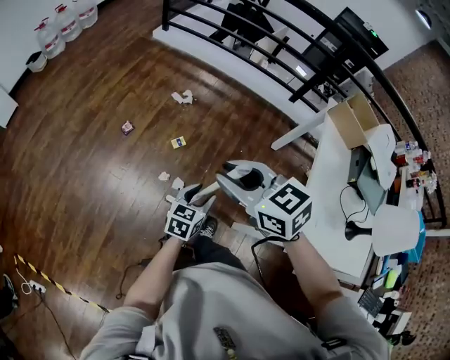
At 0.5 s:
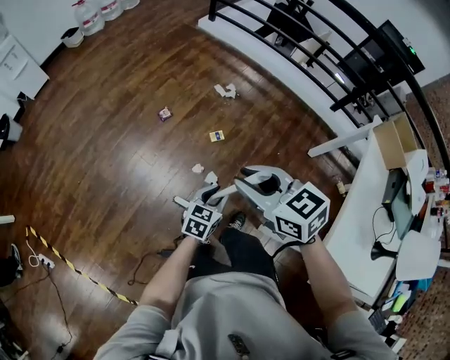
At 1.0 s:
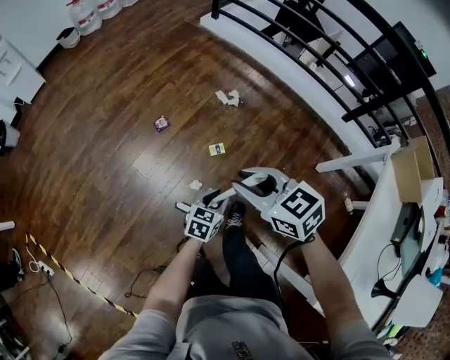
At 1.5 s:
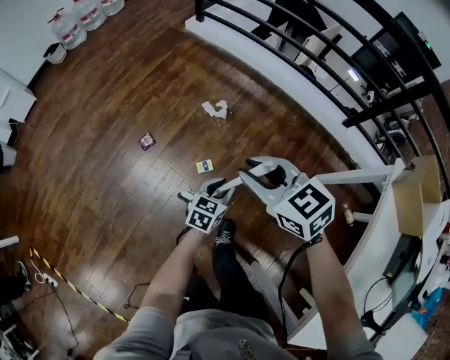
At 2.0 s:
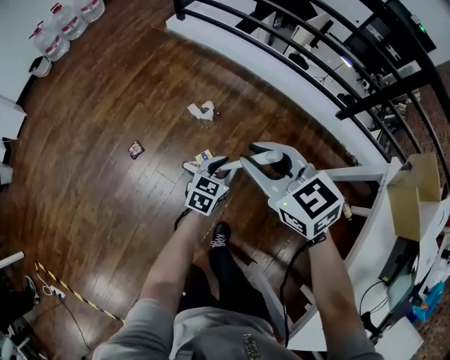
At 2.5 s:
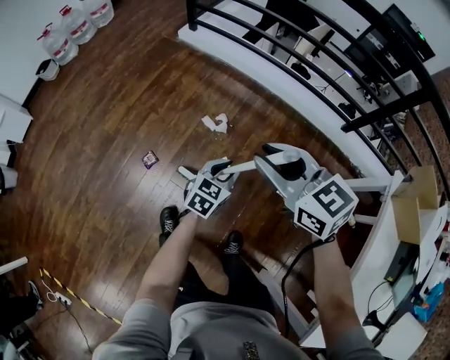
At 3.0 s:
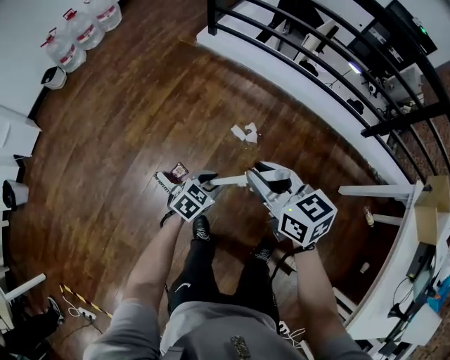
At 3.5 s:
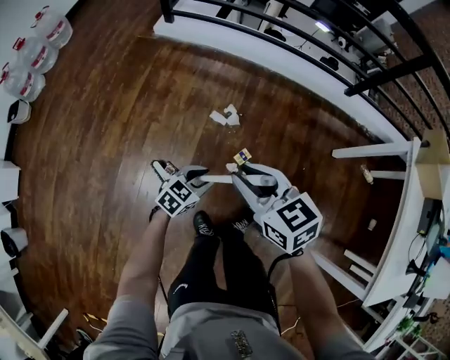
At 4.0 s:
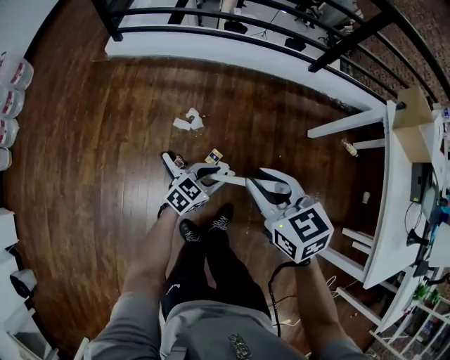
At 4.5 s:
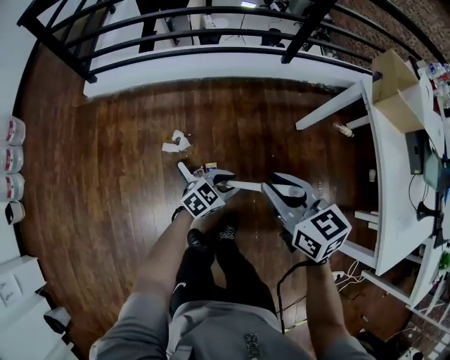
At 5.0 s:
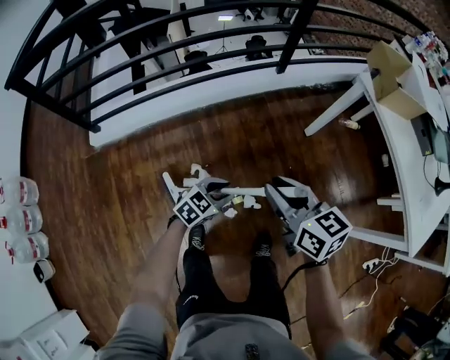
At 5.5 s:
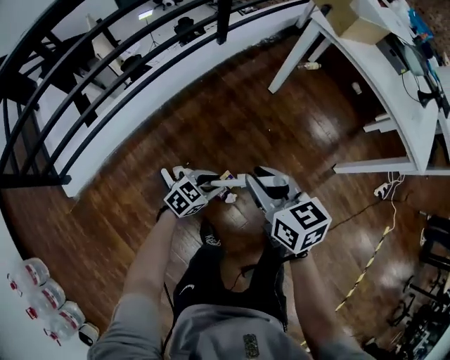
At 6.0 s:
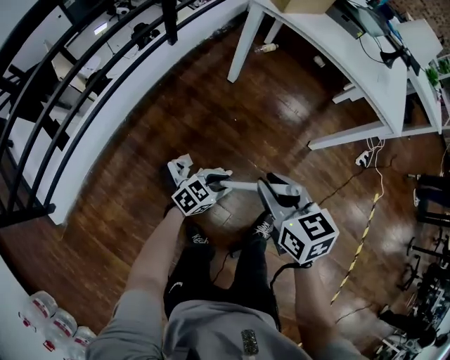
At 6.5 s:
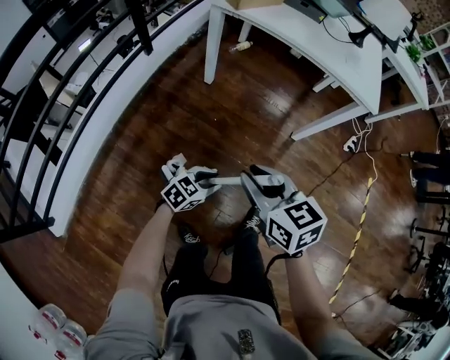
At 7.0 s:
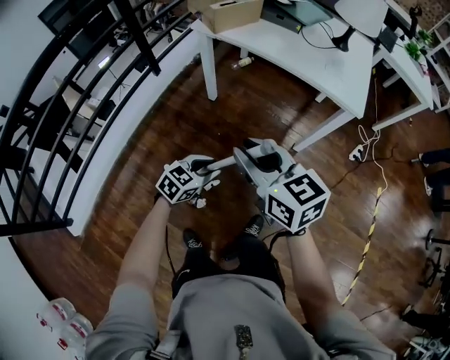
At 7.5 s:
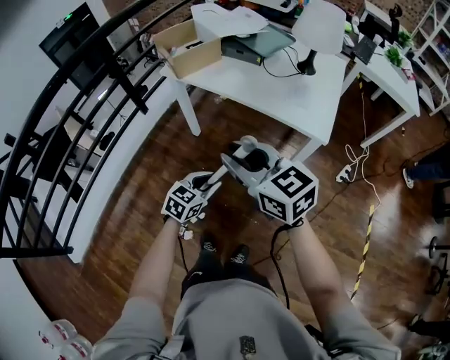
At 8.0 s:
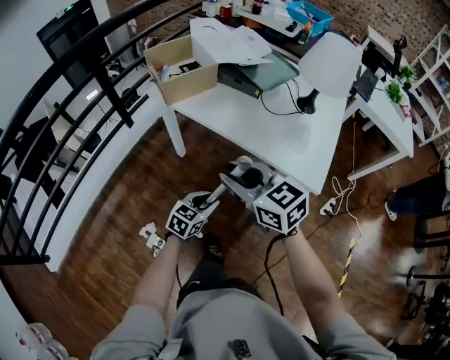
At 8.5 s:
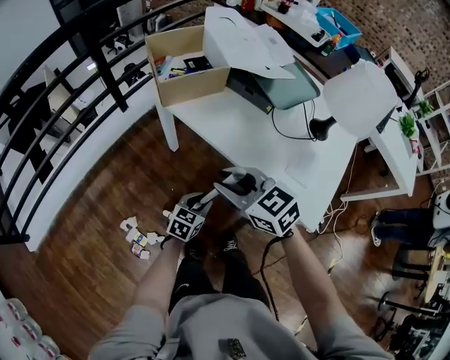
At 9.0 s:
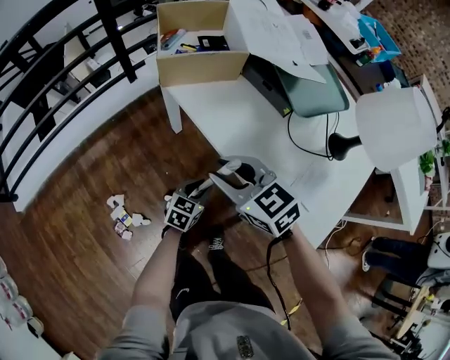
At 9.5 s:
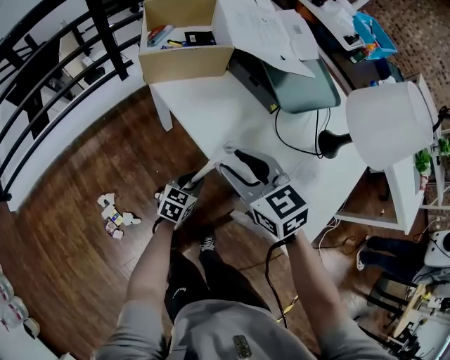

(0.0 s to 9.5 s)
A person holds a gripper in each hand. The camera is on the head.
0.0 s - 2.0 s: Both grippers are carried forward, roughly 40 cm.
2.0 s - 4.0 s: The right gripper swivels some 40 degrees. The left gripper reaches approximately 5 cm upward, then returns, and swivels some 50 degrees.
4.0 s - 5.5 s: The left gripper ends up about 15 cm from where it was, and changes its angle by about 50 degrees; the right gripper moves some 15 cm, and rotates about 50 degrees.
5.5 s - 7.5 s: The pair of grippers is taken to the right and forward, approximately 40 cm. The two grippers go roughly 25 cm upward.
7.5 s - 9.5 s: The left gripper moves approximately 35 cm, and changes its angle by some 30 degrees. Meanwhile the right gripper moves about 35 cm, and changes its angle by some 30 degrees.

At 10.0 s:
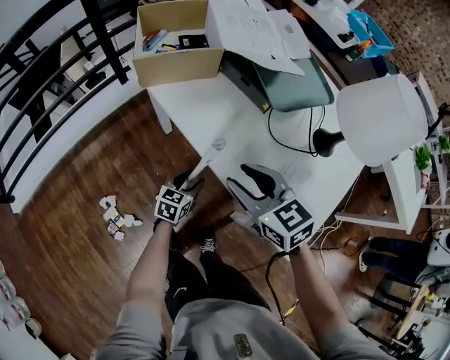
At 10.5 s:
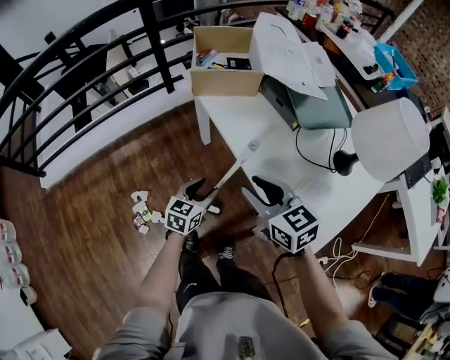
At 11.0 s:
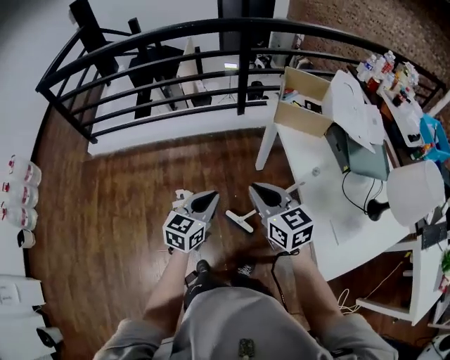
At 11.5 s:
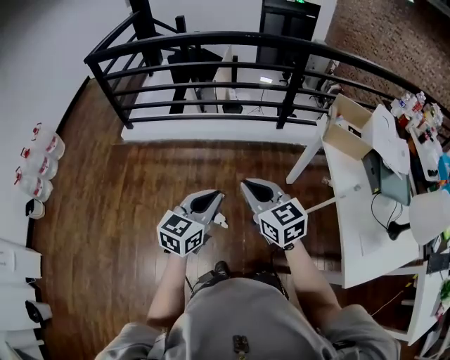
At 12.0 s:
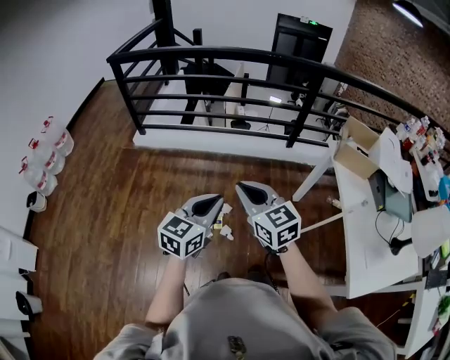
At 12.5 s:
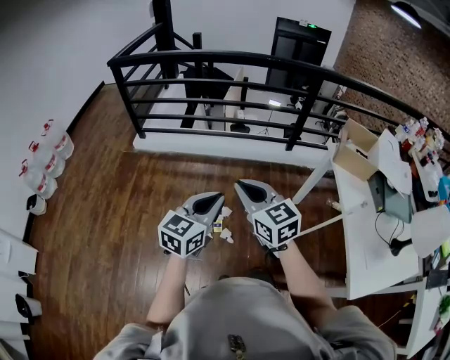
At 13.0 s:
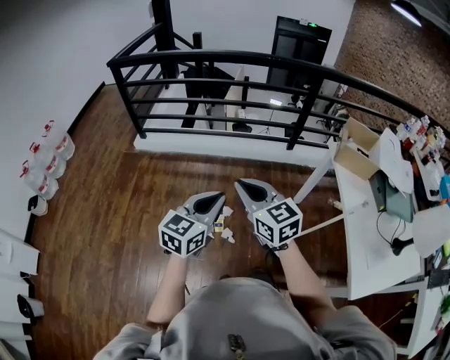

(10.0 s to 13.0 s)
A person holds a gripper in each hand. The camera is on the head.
10.0 s - 11.5 s: The pair of grippers is taken roughly 50 cm. The right gripper changes its angle by some 40 degrees, and closes up. The left gripper rotates about 50 degrees, and closes.
11.5 s - 13.0 s: Both grippers move to the left, about 5 cm.

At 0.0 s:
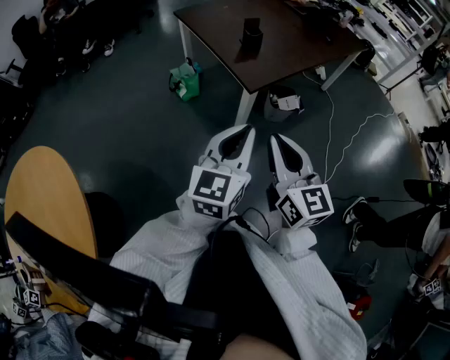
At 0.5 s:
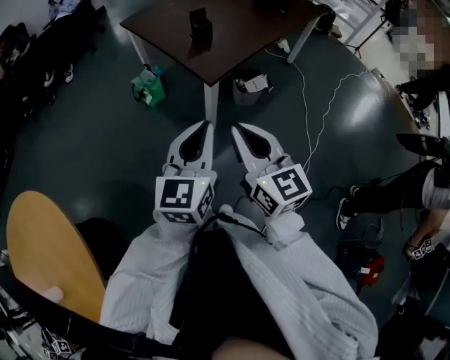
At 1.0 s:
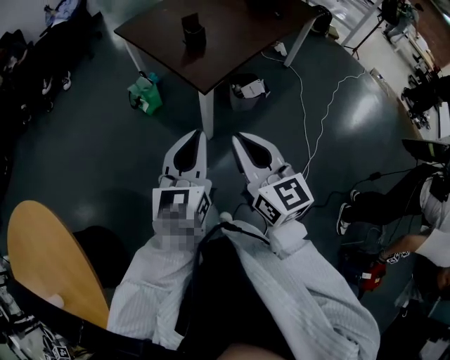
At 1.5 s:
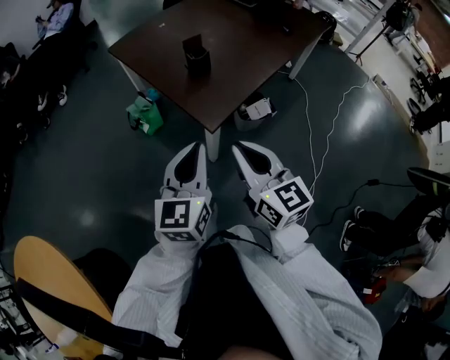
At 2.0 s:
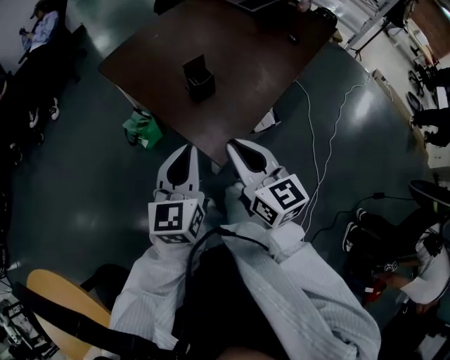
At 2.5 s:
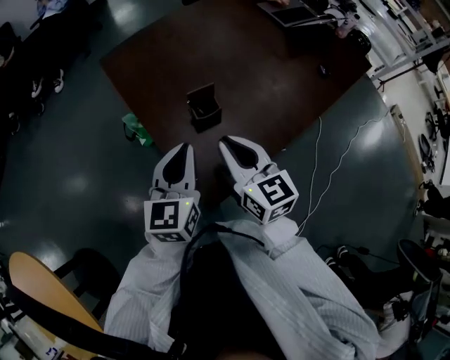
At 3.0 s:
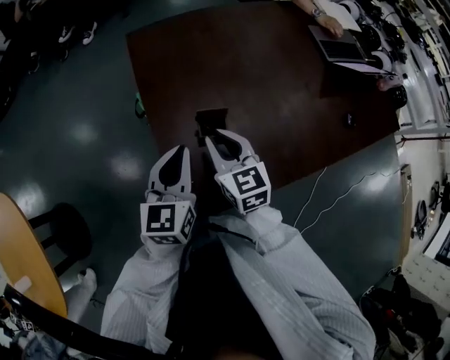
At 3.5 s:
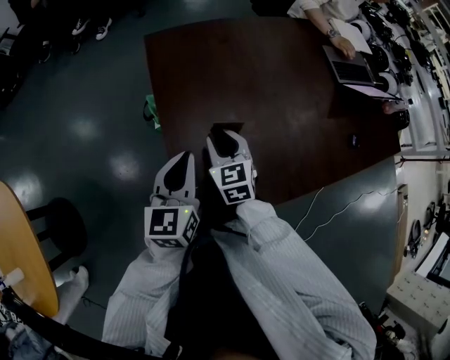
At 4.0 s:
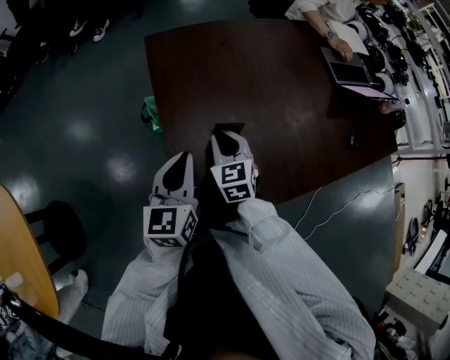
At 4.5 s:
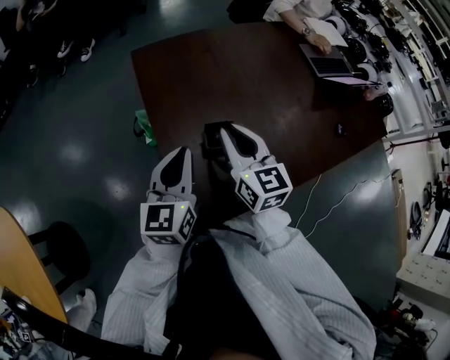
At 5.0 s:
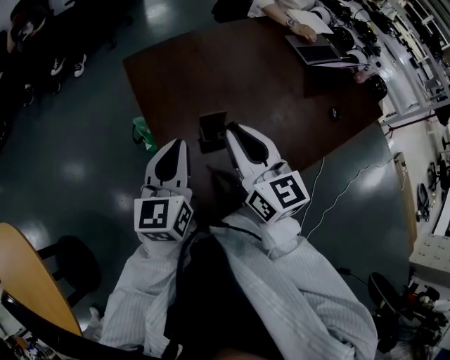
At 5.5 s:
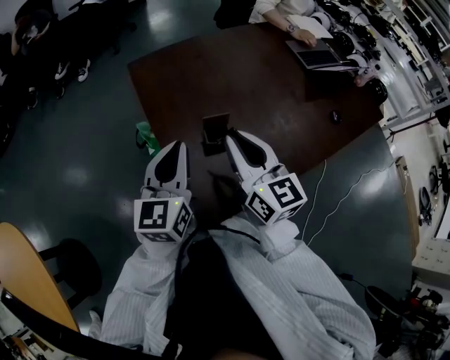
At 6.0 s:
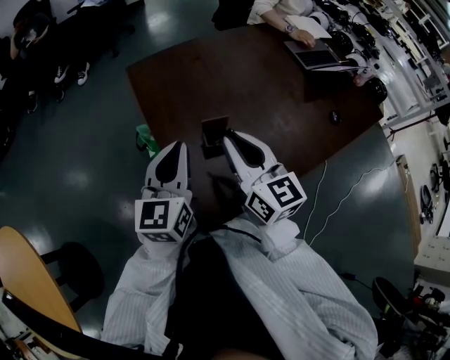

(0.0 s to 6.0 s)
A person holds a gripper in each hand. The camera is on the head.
0.0 s - 2.0 s: The two grippers go about 35 cm forward.
2.0 s - 4.0 s: The left gripper shifts by some 25 cm, and changes its angle by about 30 degrees; the right gripper moves about 35 cm, and rotates about 40 degrees.
4.0 s - 6.0 s: The right gripper goes roughly 20 cm upward and backward, and turns by roughly 30 degrees. The left gripper shifts approximately 10 cm upward.

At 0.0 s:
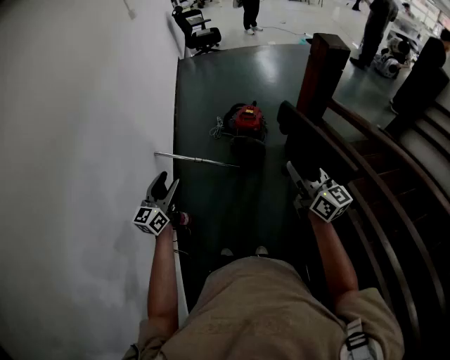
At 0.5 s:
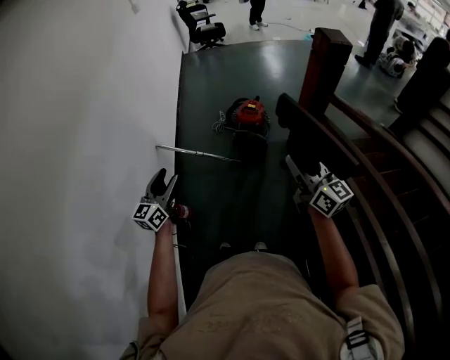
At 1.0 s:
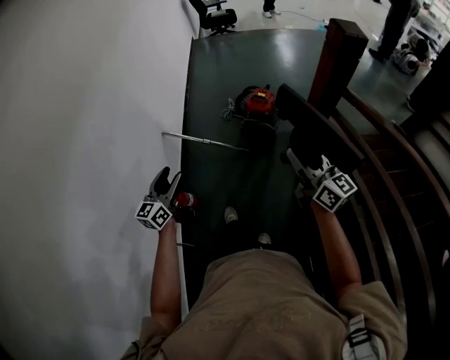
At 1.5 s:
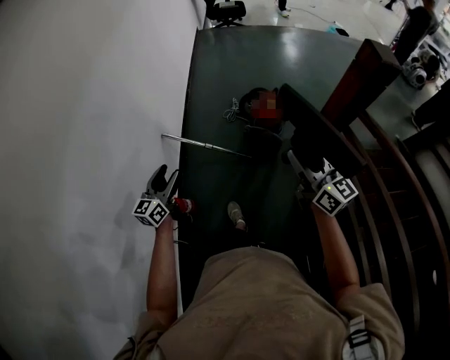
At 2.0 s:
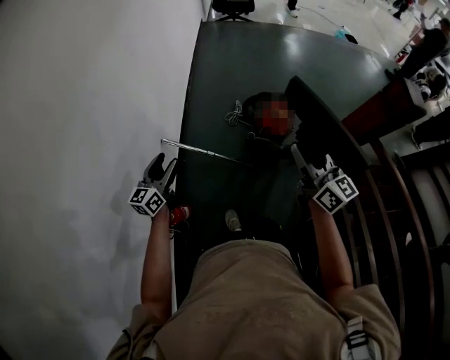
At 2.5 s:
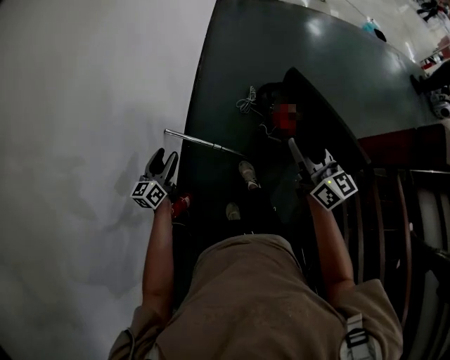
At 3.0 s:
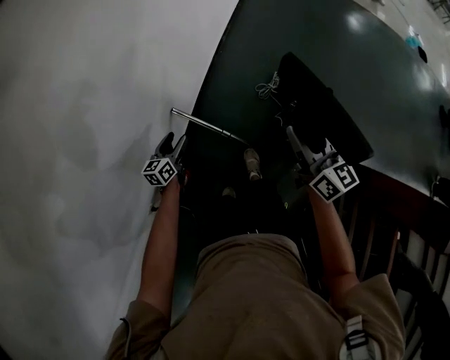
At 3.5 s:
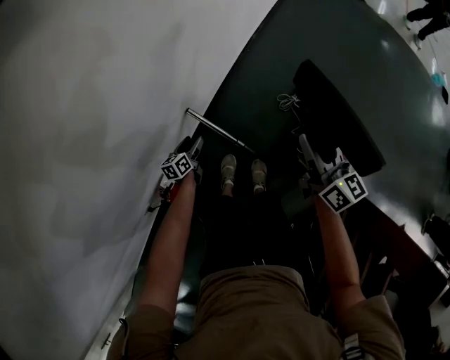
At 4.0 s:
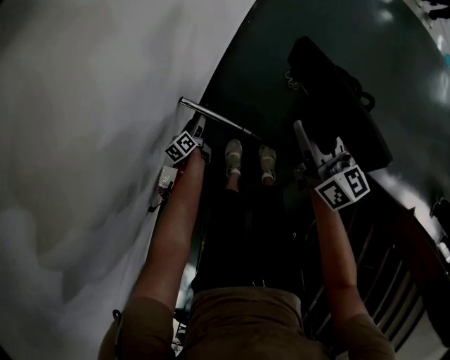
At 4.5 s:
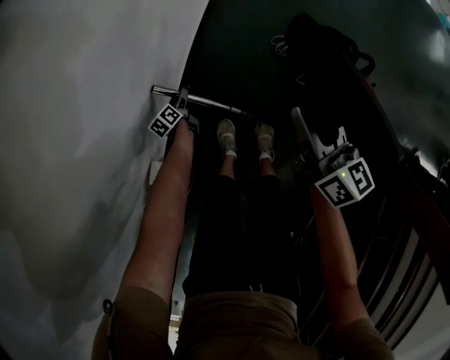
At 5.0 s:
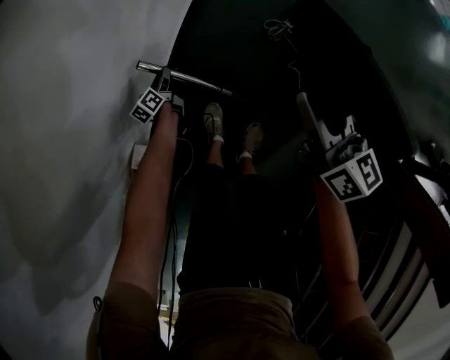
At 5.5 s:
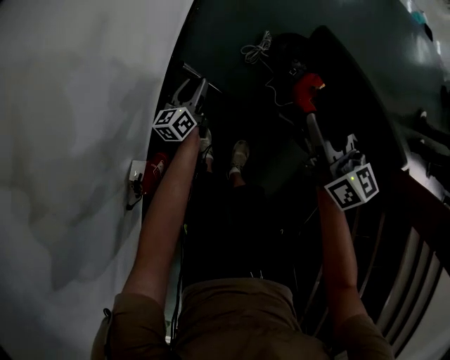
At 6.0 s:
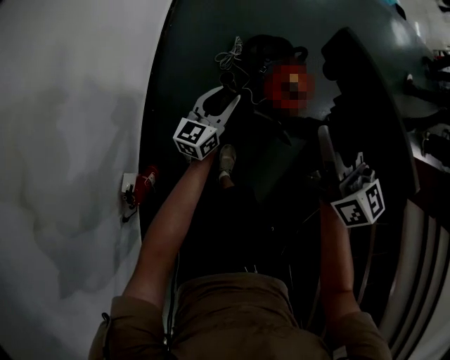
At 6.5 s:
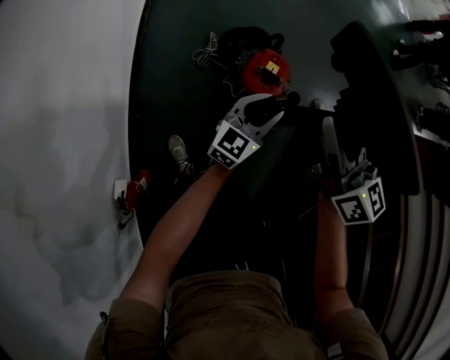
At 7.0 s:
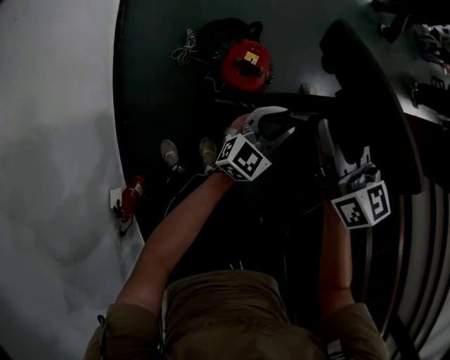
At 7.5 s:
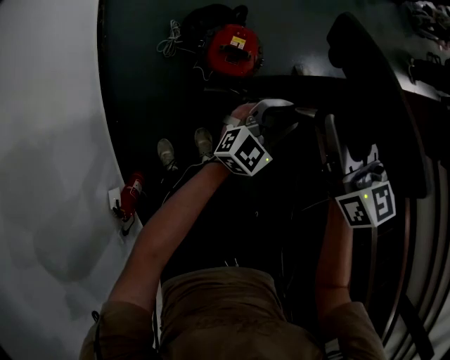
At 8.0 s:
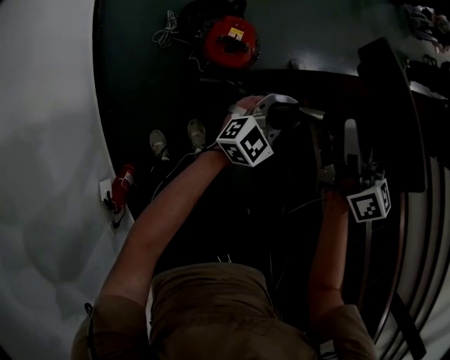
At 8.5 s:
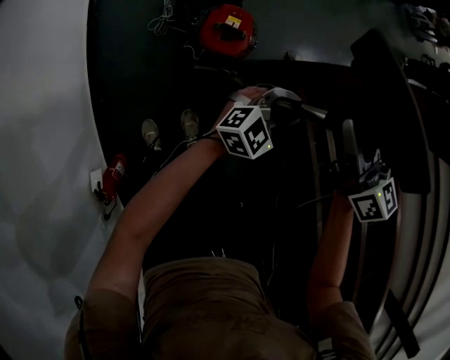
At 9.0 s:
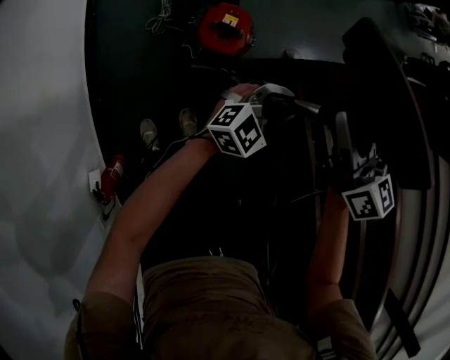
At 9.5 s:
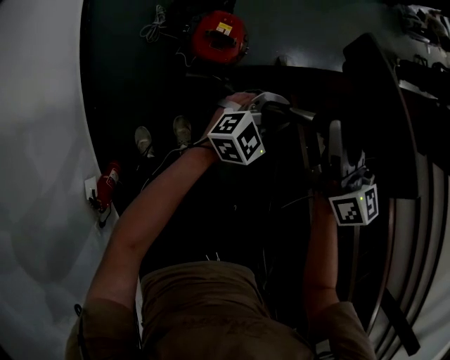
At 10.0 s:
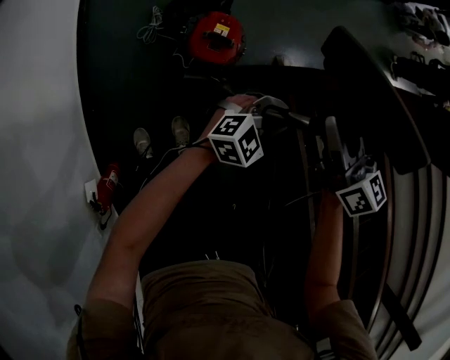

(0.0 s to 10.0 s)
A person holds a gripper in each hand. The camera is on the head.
0.0 s - 2.0 s: The left gripper goes approximately 35 cm forward, downward and to the left. Meanwhile the right gripper shifts some 40 cm forward, to the left and downward.
2.0 s - 4.0 s: The right gripper heads downward and forward, covering approximately 30 cm, and turns by about 20 degrees. Meanwhile the left gripper goes about 35 cm downward, and tilts its fingers roughly 30 degrees downward.
4.0 s - 6.0 s: The right gripper ends up approximately 35 cm from where it was, and rotates roughly 20 degrees, while the left gripper changes place by about 50 cm, tips its fingers upward by some 30 degrees, and closes its fingers.
6.0 s - 8.0 s: The left gripper moves approximately 40 cm, and swivels some 60 degrees. The right gripper shifts by some 25 cm, and rotates about 20 degrees.
8.0 s - 10.0 s: The grippers move only a little.
